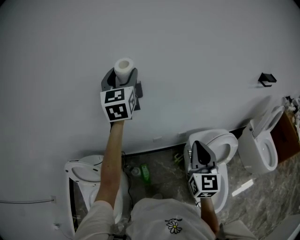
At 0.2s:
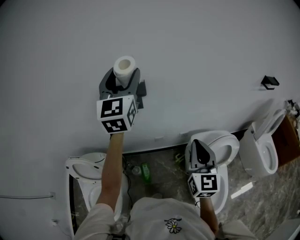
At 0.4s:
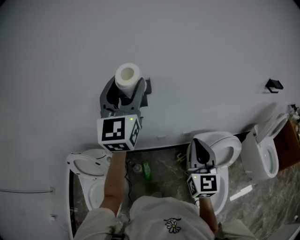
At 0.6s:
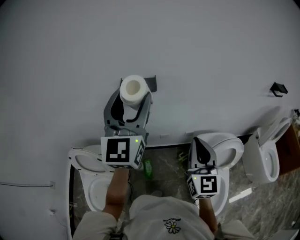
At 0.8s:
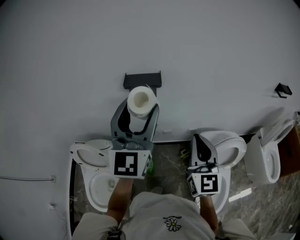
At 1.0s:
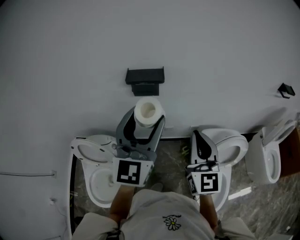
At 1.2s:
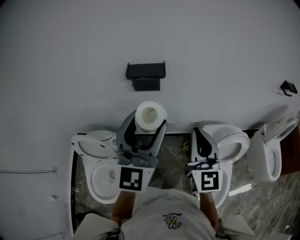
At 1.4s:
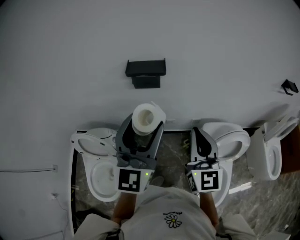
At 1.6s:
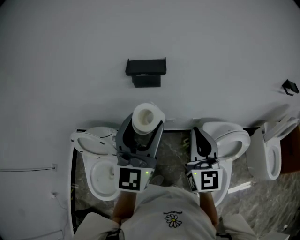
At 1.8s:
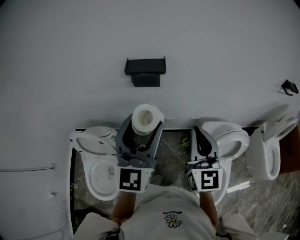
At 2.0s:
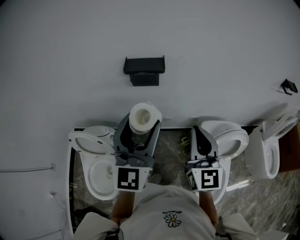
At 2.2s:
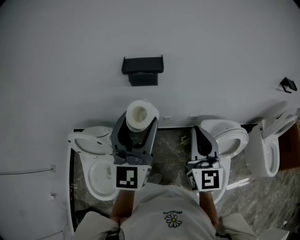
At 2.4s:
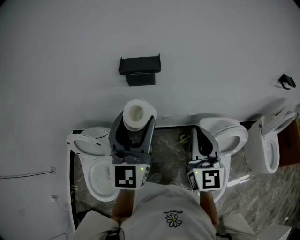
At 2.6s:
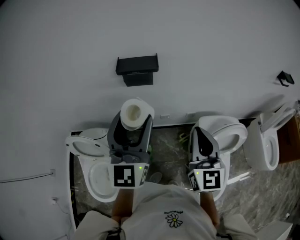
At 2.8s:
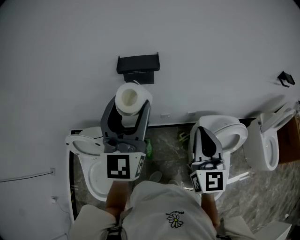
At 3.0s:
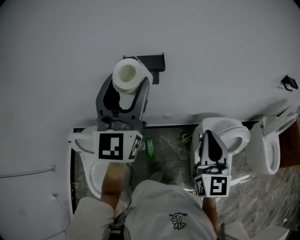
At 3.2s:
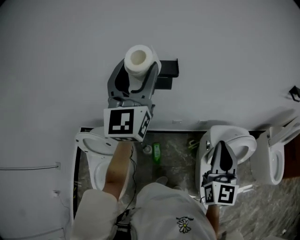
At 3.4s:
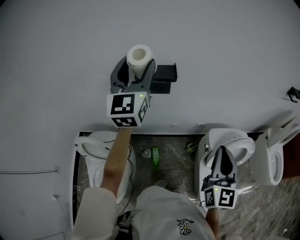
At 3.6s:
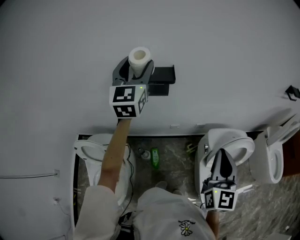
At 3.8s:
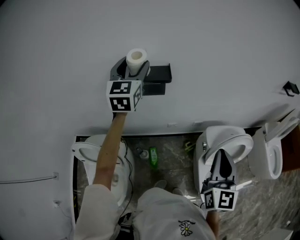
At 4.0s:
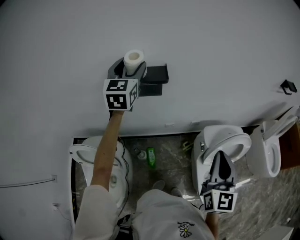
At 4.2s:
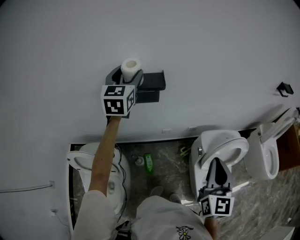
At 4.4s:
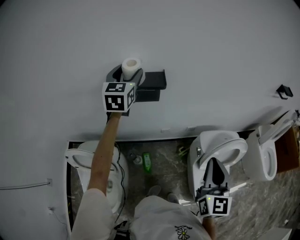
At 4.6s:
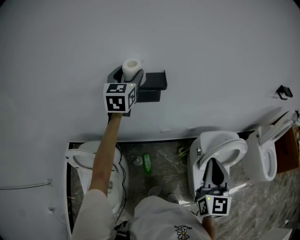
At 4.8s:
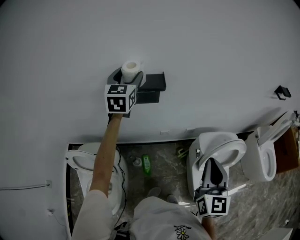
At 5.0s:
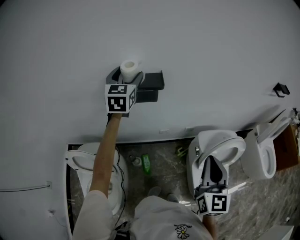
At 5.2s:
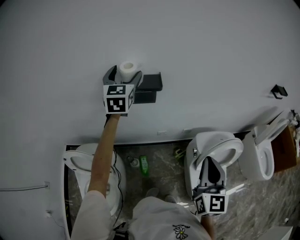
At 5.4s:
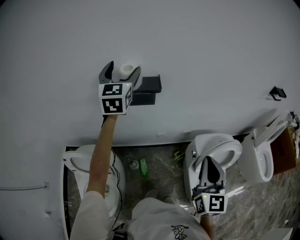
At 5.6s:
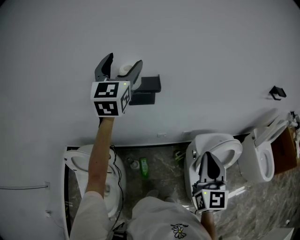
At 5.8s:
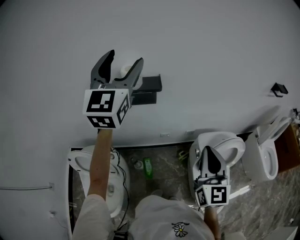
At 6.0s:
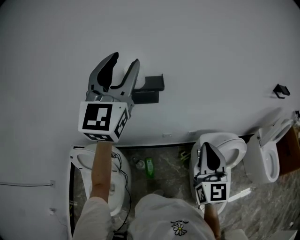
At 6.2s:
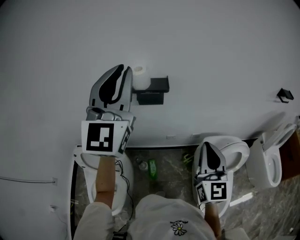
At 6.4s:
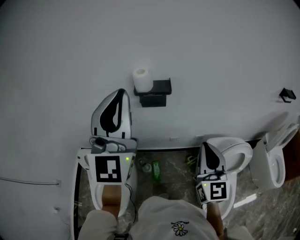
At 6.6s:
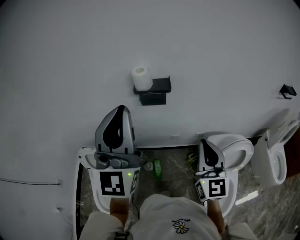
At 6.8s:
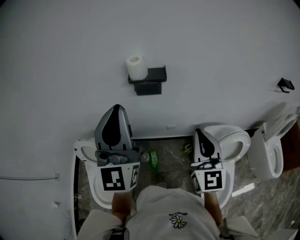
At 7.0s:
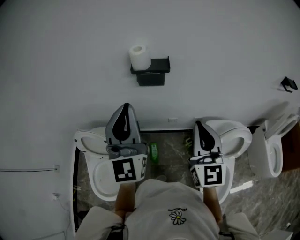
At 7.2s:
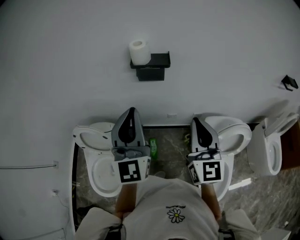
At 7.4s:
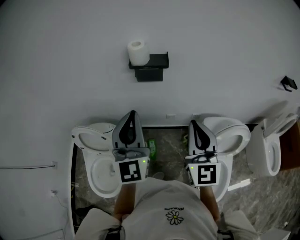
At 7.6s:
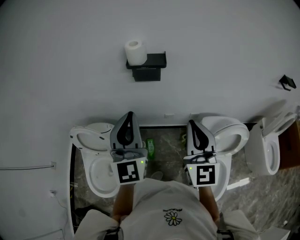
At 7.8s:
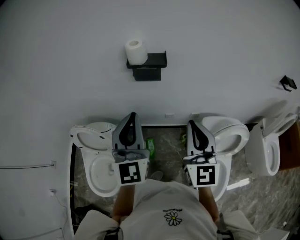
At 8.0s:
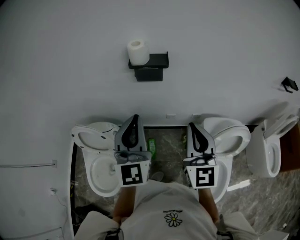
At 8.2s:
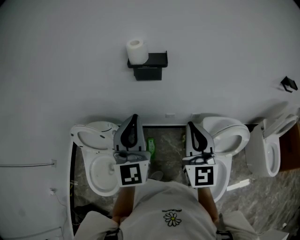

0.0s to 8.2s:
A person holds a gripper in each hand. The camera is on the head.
0.0s to 1.6s: The left gripper travels backward by some 25 cm, while the right gripper heads to the left, covering roughly 10 cm.
1.6s to 3.2s: The right gripper travels to the right by about 5 cm. The left gripper travels forward, upward and to the left by roughly 15 cm.
3.2s to 5.0s: The left gripper goes about 20 cm forward and downward, and swivels about 30 degrees.
5.0s to 6.6s: The right gripper ends up about 5 cm from where it was. Meanwhile the left gripper heads backward and upward, covering roughly 35 cm, tips its fingers upward by about 30 degrees, and closes its fingers.
6.6s to 8.2s: The left gripper travels downward by some 15 cm.

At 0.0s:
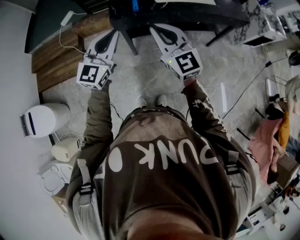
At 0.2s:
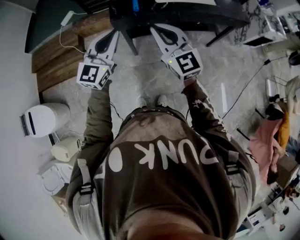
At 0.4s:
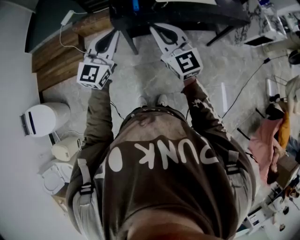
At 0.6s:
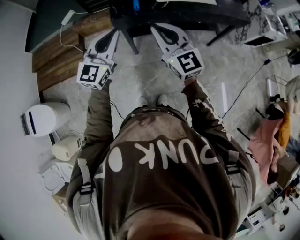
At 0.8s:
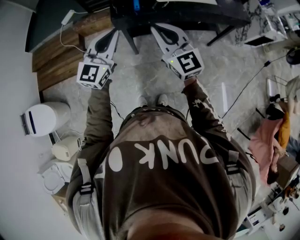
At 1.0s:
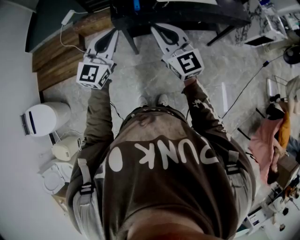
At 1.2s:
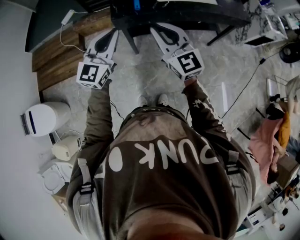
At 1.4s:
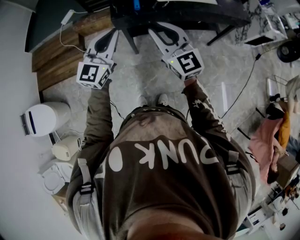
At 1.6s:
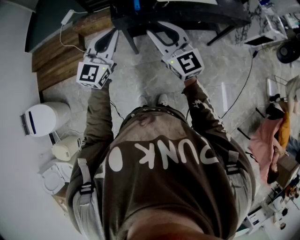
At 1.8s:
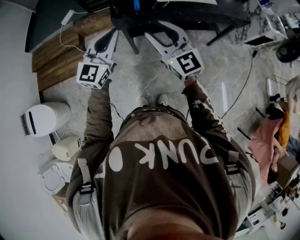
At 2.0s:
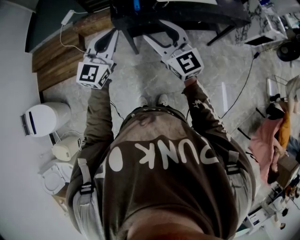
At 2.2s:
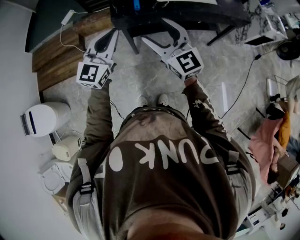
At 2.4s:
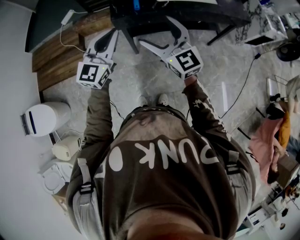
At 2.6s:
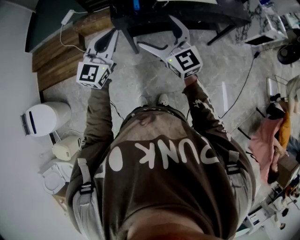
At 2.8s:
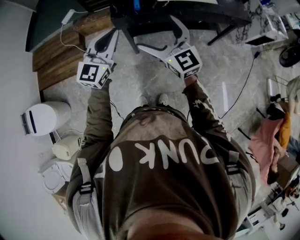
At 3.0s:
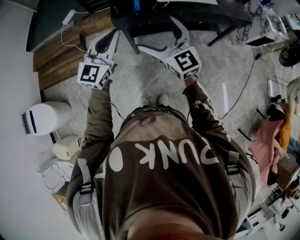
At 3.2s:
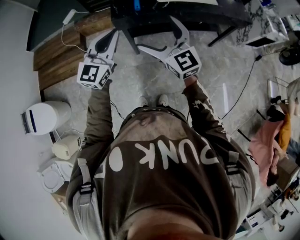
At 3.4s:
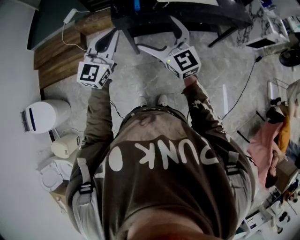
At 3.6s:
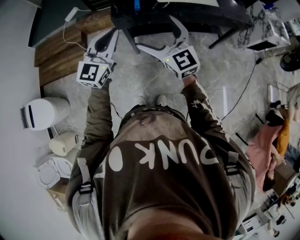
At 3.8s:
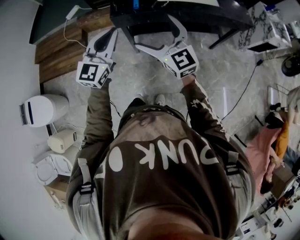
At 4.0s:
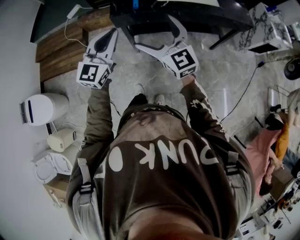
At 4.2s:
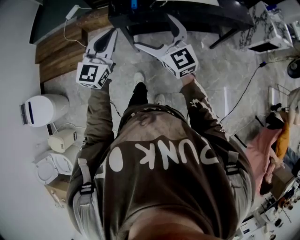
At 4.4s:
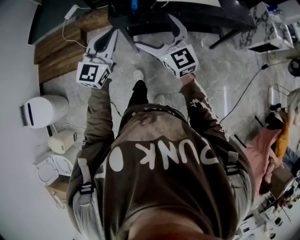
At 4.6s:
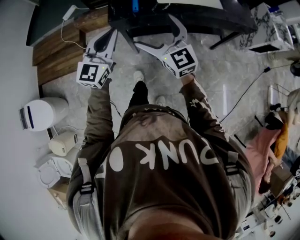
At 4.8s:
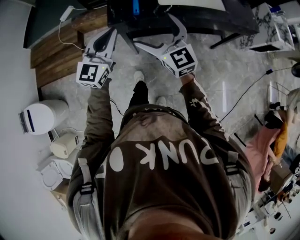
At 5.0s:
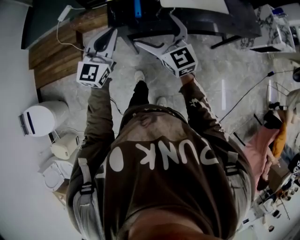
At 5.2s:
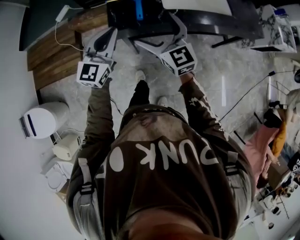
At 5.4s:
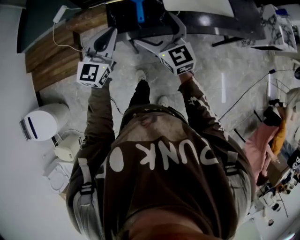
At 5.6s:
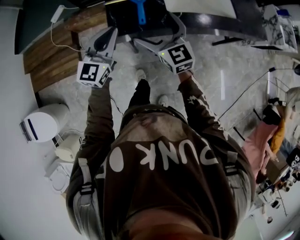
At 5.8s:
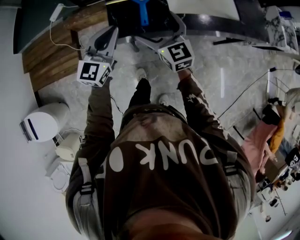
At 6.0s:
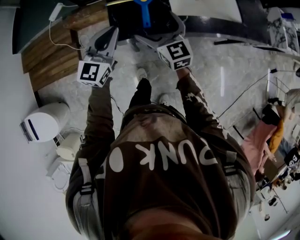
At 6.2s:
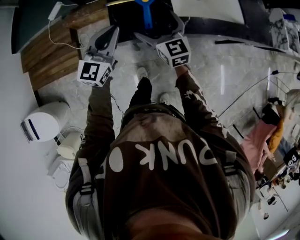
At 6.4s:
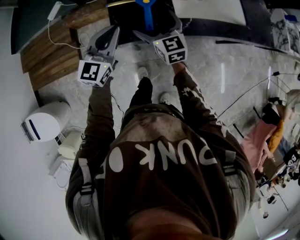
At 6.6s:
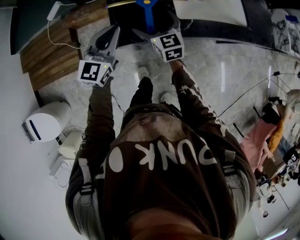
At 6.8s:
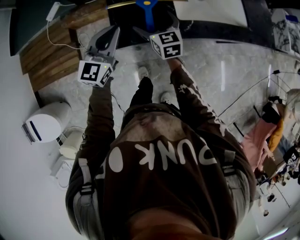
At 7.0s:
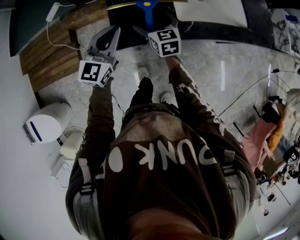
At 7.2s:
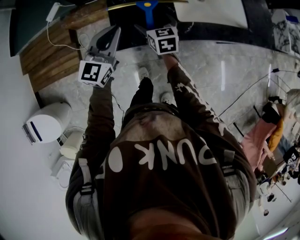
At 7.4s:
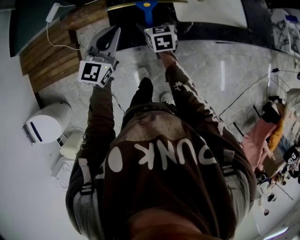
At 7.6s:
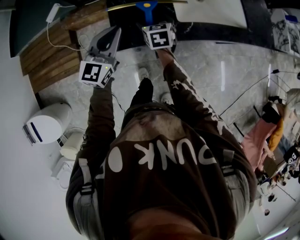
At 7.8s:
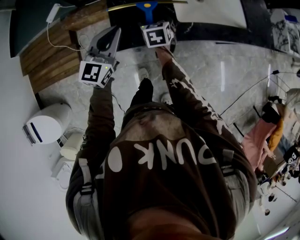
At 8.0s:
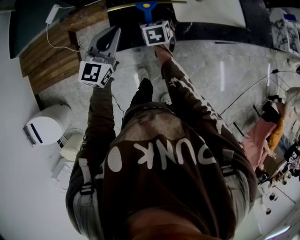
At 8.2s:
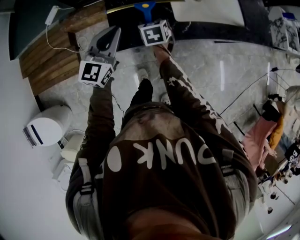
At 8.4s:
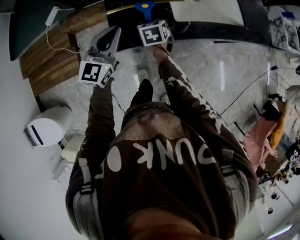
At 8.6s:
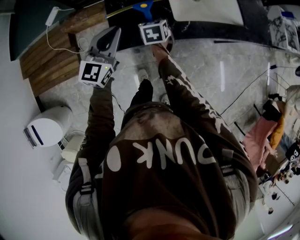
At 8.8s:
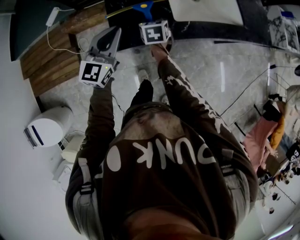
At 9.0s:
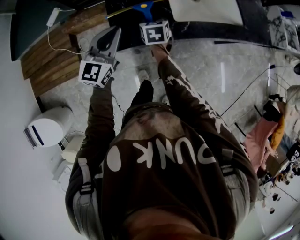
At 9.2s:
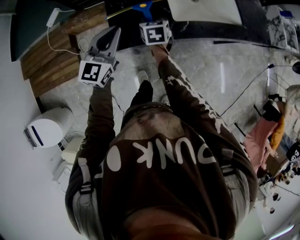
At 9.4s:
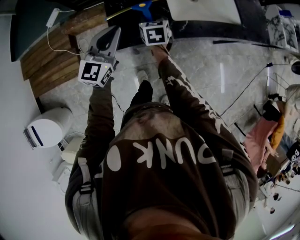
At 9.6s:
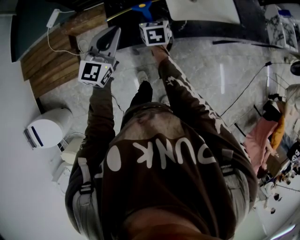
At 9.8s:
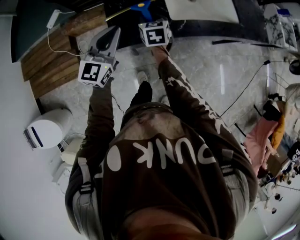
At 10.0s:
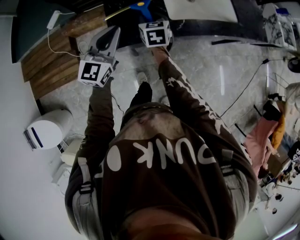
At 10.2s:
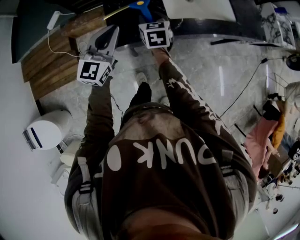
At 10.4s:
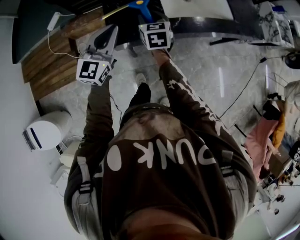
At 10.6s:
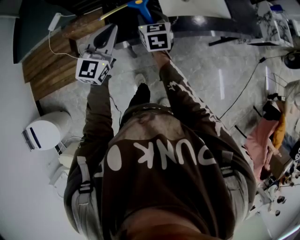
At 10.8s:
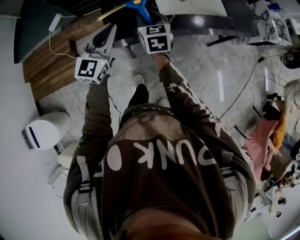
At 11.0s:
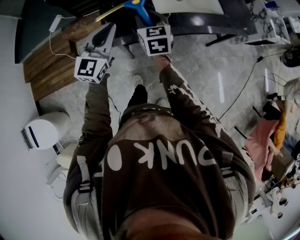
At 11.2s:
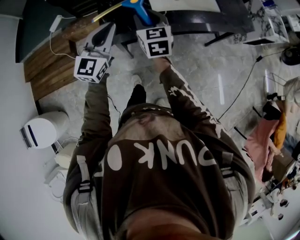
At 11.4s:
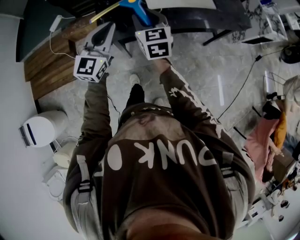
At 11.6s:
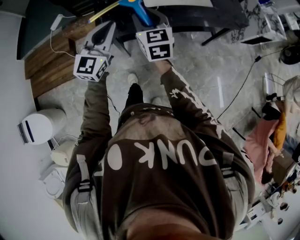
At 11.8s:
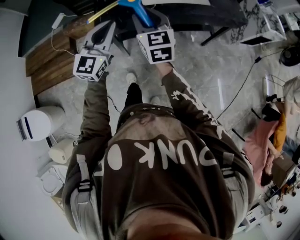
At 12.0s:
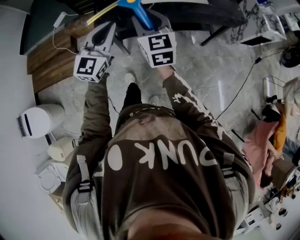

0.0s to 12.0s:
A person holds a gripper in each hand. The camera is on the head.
0.0s to 1.6s: The two grippers keep their place.
1.6s to 3.0s: The right gripper opens.
3.0s to 4.4s: There are only small adjustments of the grippers.
4.4s to 6.0s: The left gripper is displaced forward by some 25 cm. The right gripper heads forward and downward, covering approximately 30 cm.
6.0s to 7.6s: The right gripper travels downward and forward by roughly 15 cm, and points its fingers approximately 30 degrees further downward. Meanwhile the left gripper is displaced forward by some 5 cm.
7.6s to 9.0s: The right gripper closes up.
9.0s to 10.4s: The right gripper heads upward, covering roughly 10 cm. The left gripper moves approximately 5 cm.
10.4s to 12.0s: The left gripper heads backward and to the right, covering roughly 25 cm; the right gripper goes approximately 30 cm backward, upward and to the right, and rotates approximately 20 degrees.

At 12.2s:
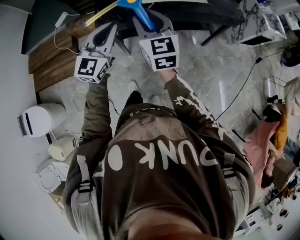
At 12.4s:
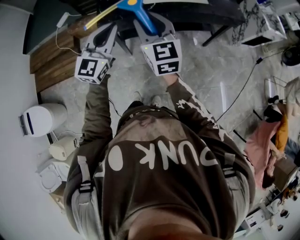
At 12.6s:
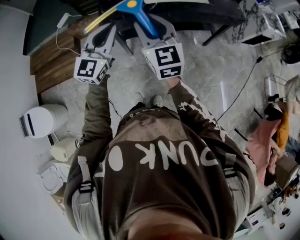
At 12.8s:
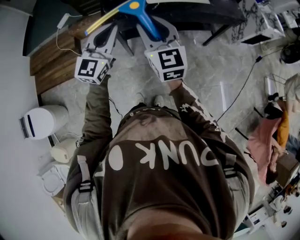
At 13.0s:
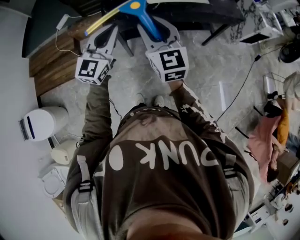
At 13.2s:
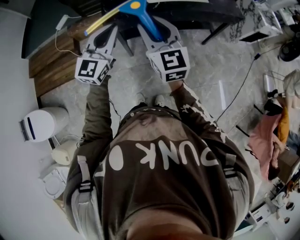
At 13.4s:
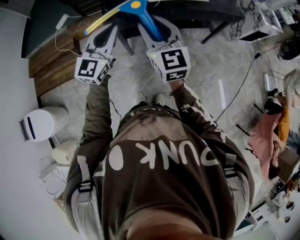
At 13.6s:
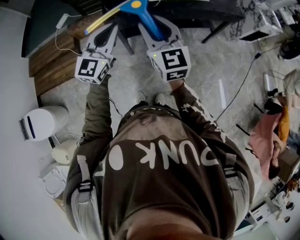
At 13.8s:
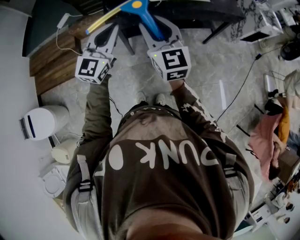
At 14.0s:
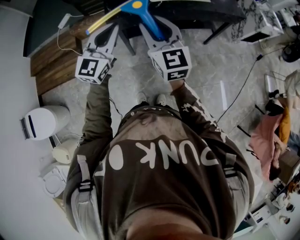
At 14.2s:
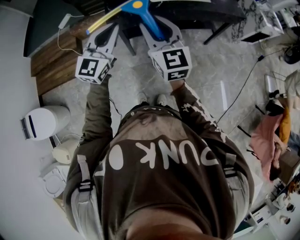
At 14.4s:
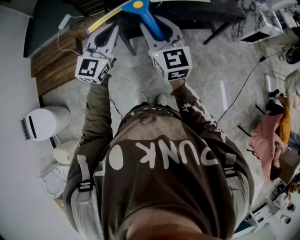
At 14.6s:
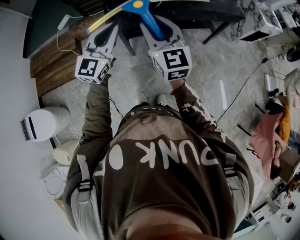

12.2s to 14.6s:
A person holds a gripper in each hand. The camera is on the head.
12.2s to 13.4s: The right gripper is displaced backward by about 10 cm; the left gripper heads to the left, covering approximately 5 cm.
13.4s to 14.6s: Neither gripper changes place.

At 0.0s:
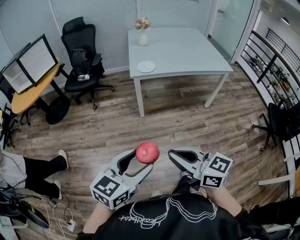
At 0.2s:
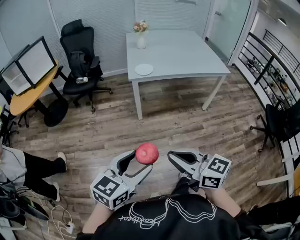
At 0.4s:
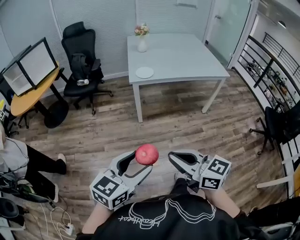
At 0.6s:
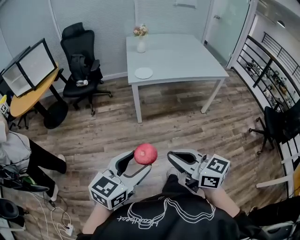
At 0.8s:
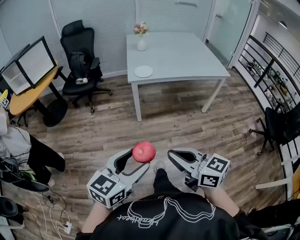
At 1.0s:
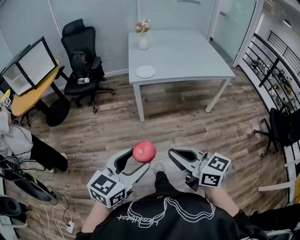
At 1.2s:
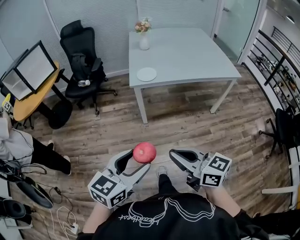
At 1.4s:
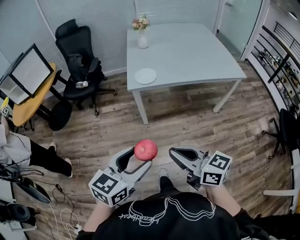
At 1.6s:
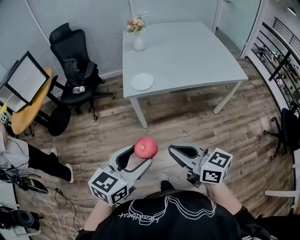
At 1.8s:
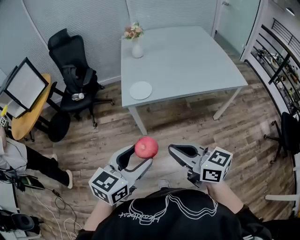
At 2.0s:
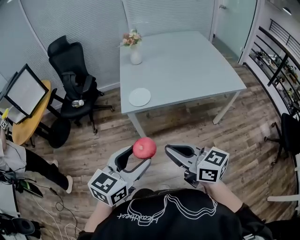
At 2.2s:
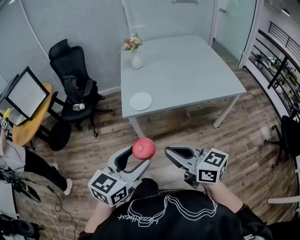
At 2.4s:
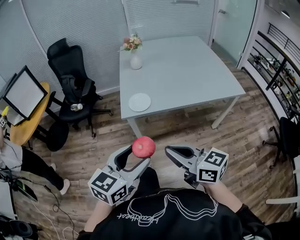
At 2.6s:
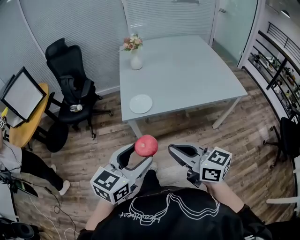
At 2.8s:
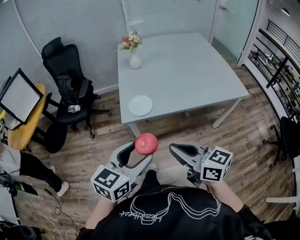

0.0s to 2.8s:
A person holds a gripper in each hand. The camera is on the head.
0.0s to 1.4s: The grippers both shift forward by roughly 20 cm.
1.4s to 2.8s: The grippers both shift forward by roughly 20 cm.
